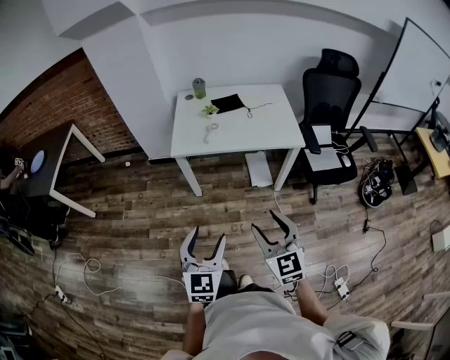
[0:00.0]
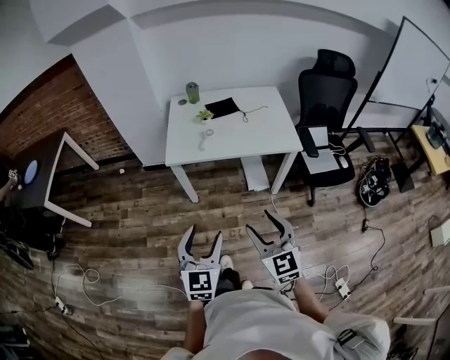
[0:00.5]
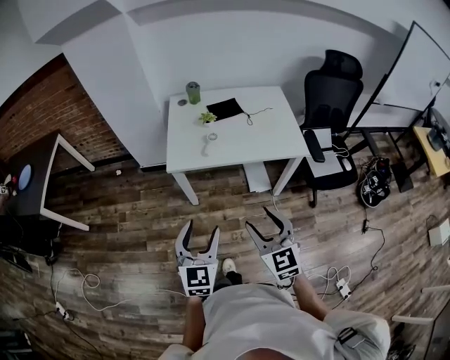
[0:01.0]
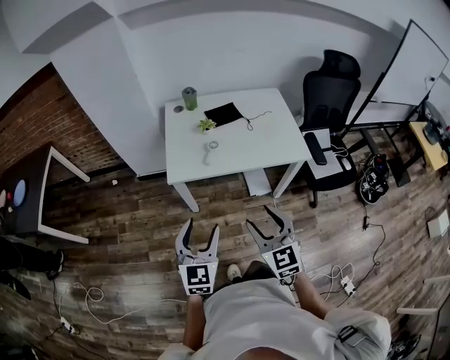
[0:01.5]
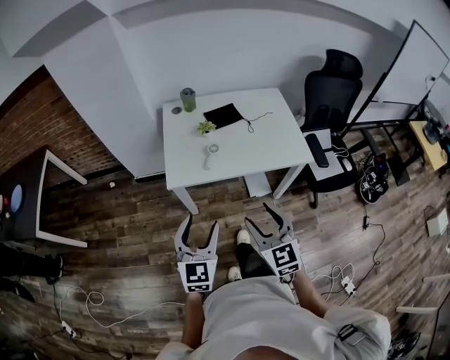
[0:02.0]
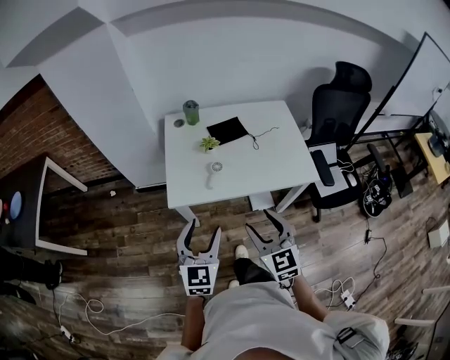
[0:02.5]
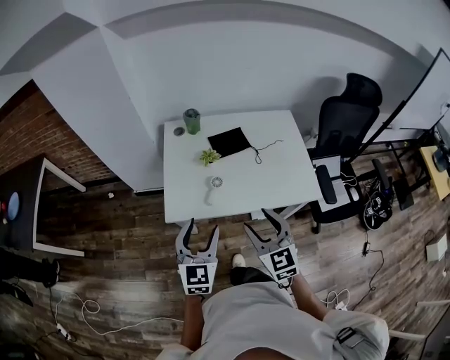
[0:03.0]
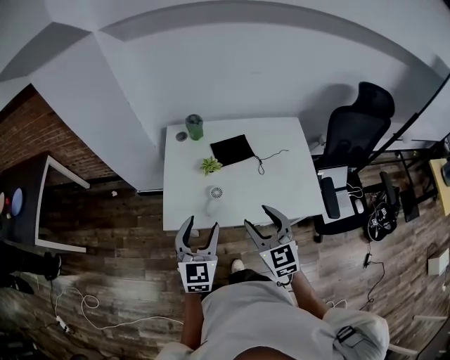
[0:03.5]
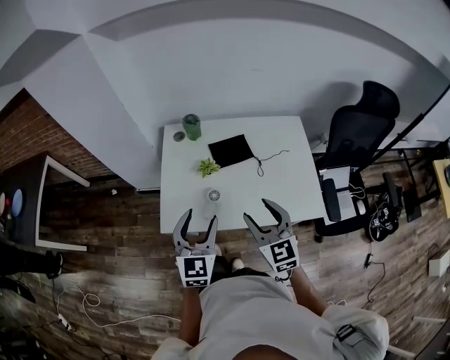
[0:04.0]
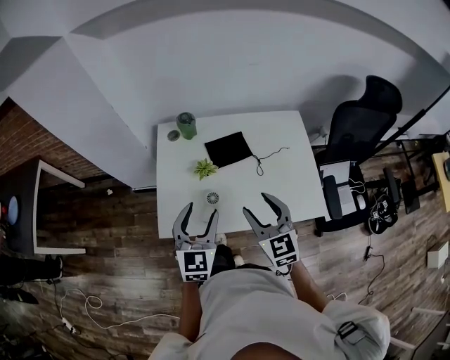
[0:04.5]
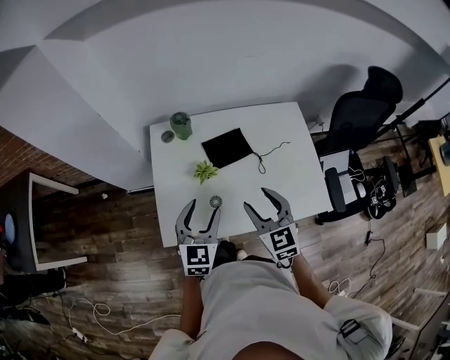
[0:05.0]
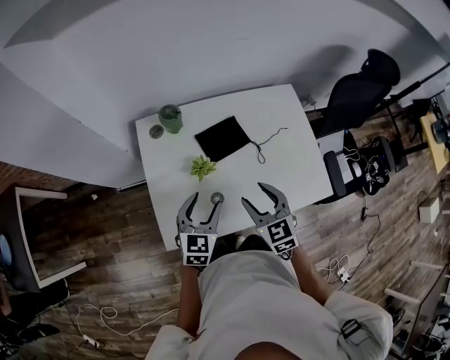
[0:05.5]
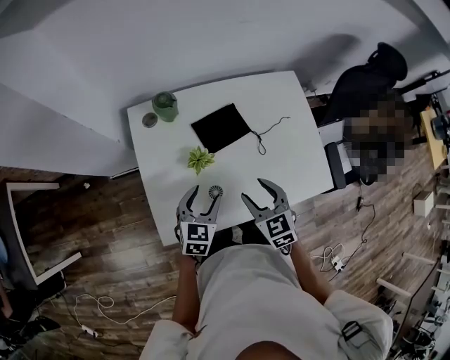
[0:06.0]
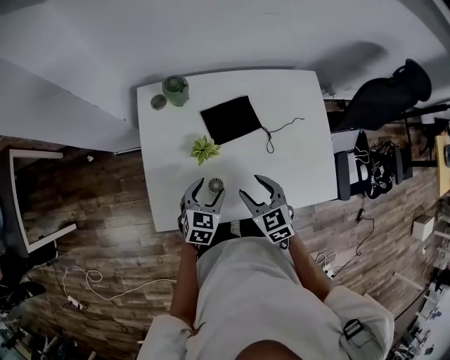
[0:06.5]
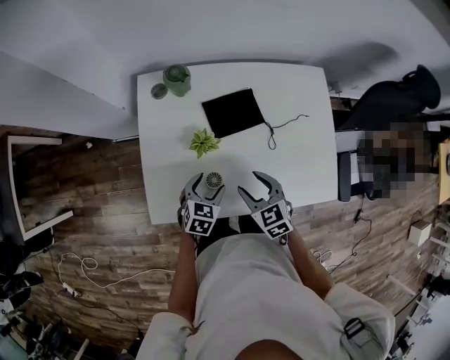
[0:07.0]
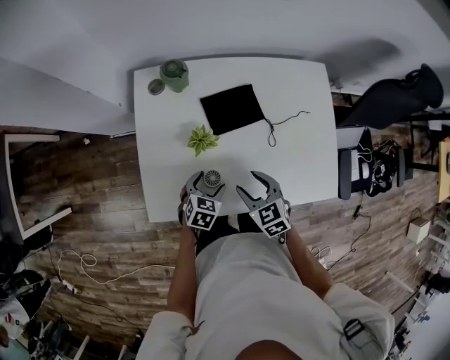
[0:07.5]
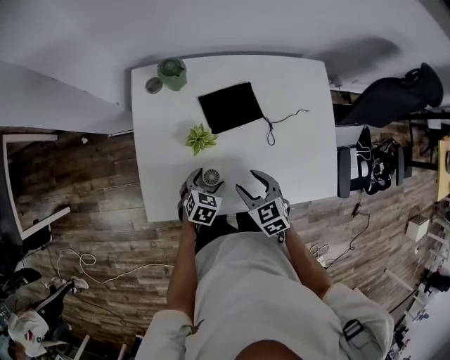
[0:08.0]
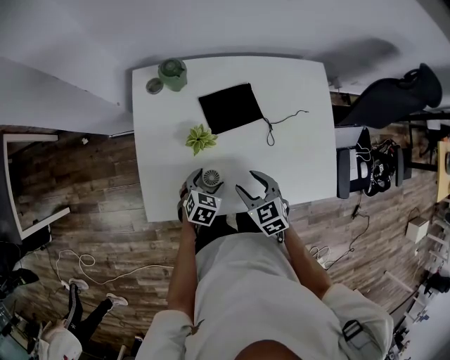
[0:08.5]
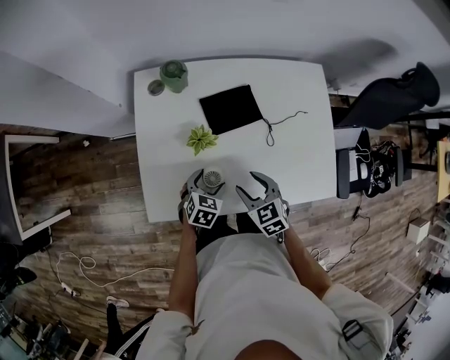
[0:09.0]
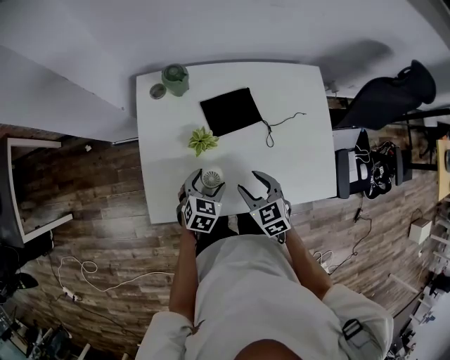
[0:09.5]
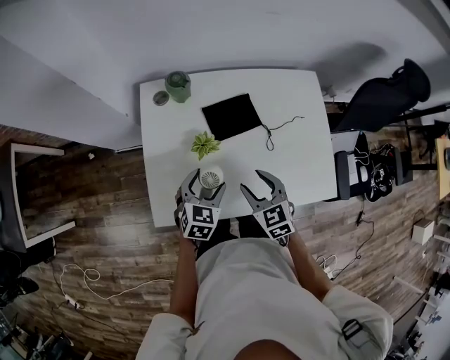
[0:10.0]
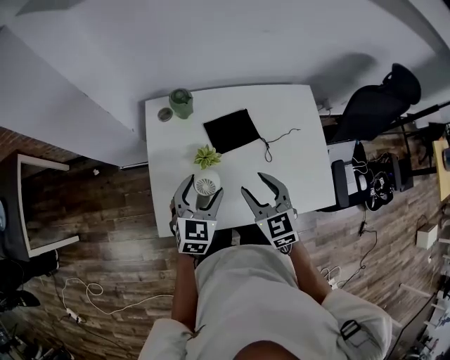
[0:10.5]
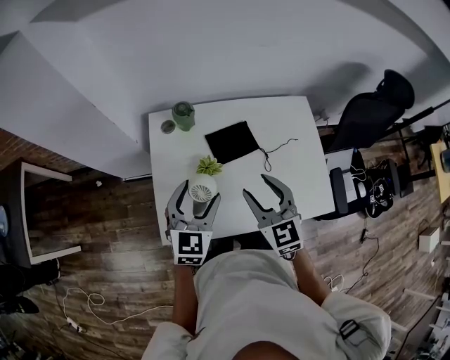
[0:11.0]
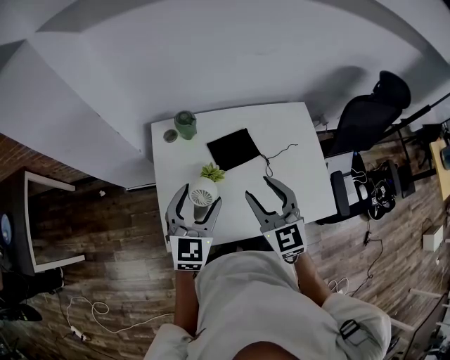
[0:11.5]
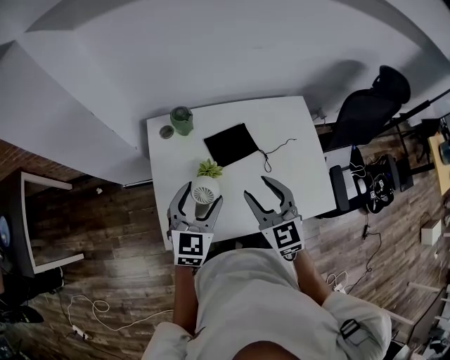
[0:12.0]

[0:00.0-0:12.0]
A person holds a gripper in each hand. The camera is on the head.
0:00.0 to 0:02.0: Both grippers move forward, roughly 25 cm.
0:02.0 to 0:04.0: The grippers both shift forward by some 30 cm.
0:04.0 to 0:06.0: The grippers both shift downward and forward by approximately 20 cm. The left gripper turns by some 30 degrees. Meanwhile the right gripper turns by about 20 degrees.
0:06.0 to 0:08.0: The left gripper goes about 15 cm downward, and swivels some 20 degrees. Meanwhile the right gripper moves downward, about 10 cm.
0:08.0 to 0:10.0: The left gripper heads upward, covering approximately 15 cm; the right gripper moves upward, some 5 cm.
0:10.0 to 0:12.0: The two grippers go approximately 15 cm upward. The left gripper swivels approximately 20 degrees.

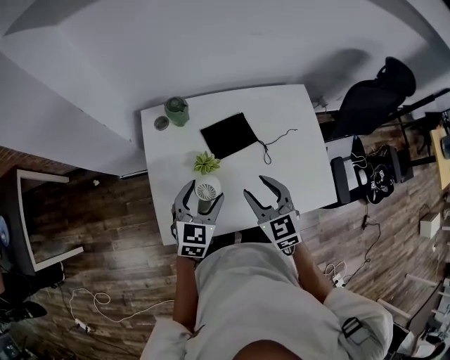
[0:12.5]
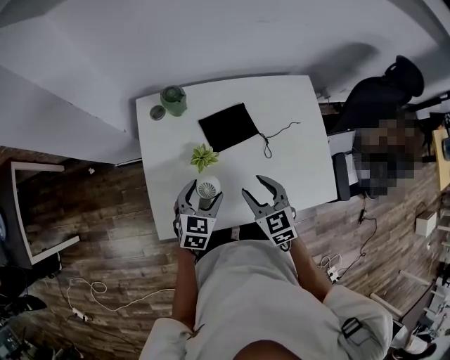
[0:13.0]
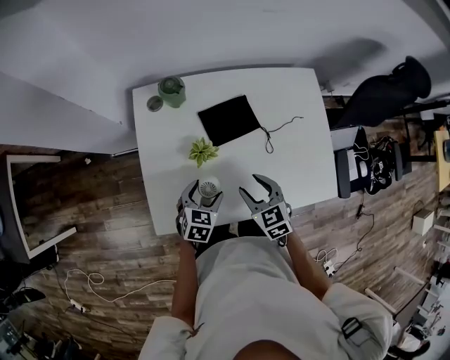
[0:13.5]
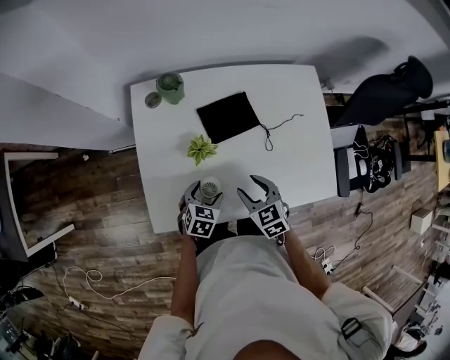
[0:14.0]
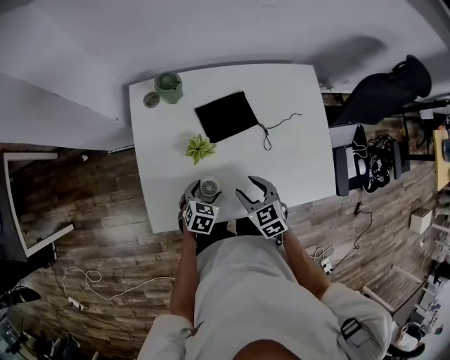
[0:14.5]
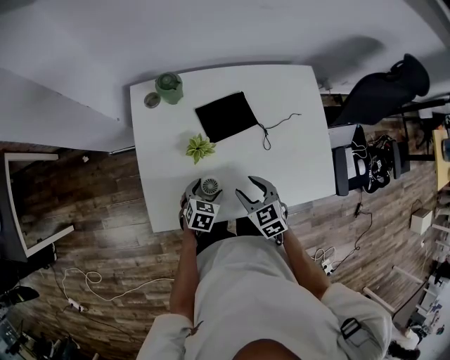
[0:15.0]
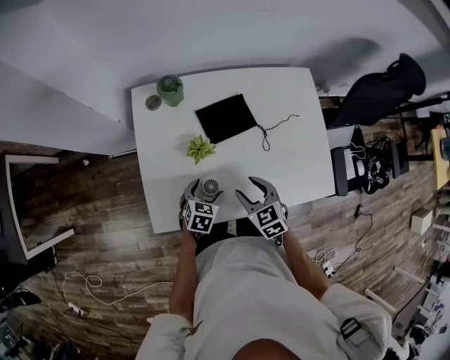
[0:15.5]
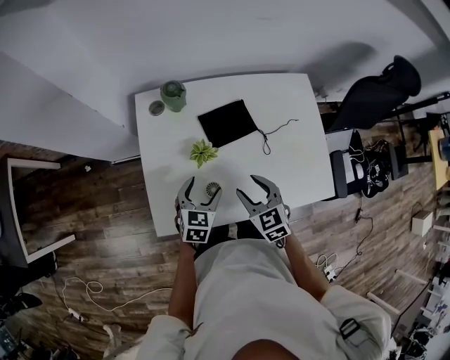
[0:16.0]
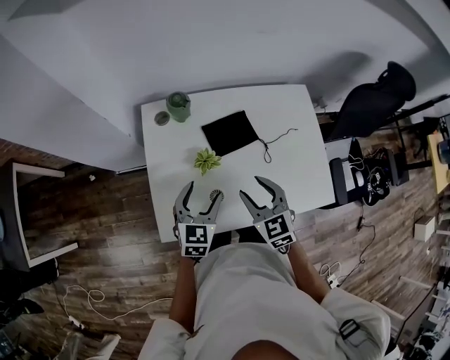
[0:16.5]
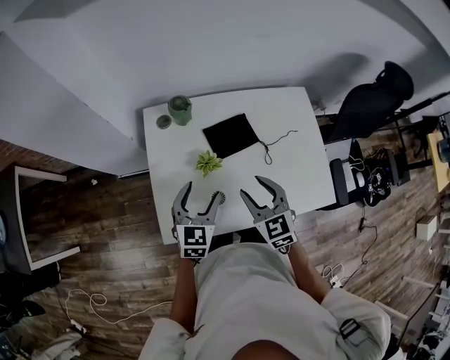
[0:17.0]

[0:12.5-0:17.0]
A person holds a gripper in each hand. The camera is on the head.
0:12.5 to 0:14.5: Both grippers travel together downward, approximately 20 cm. The left gripper turns by approximately 30 degrees. Meanwhile the right gripper turns by approximately 20 degrees.
0:14.5 to 0:17.0: The grippers both shift upward by roughly 15 cm. The right gripper changes its angle by roughly 20 degrees. Meanwhile the left gripper tips its fingers upward by about 30 degrees.

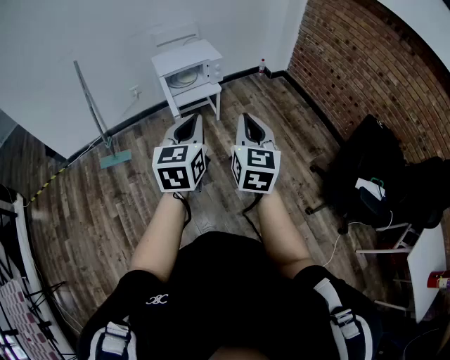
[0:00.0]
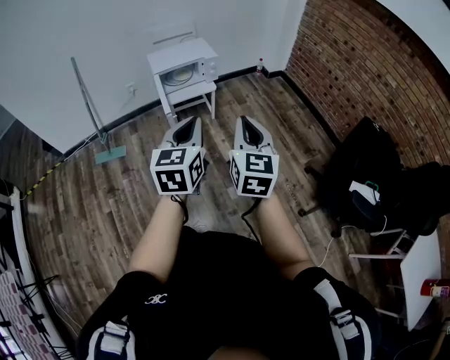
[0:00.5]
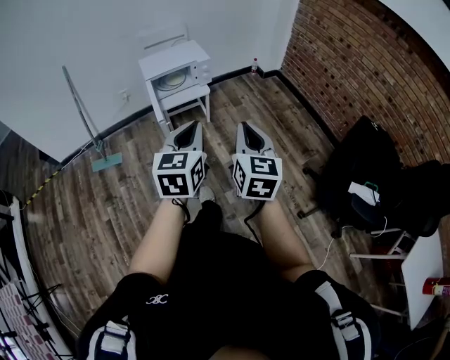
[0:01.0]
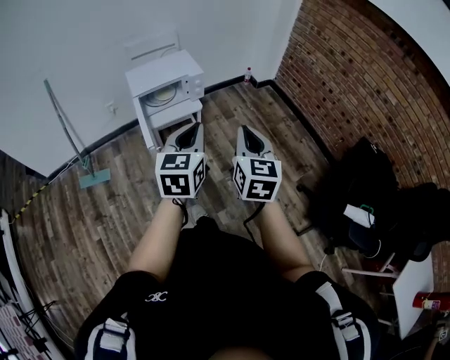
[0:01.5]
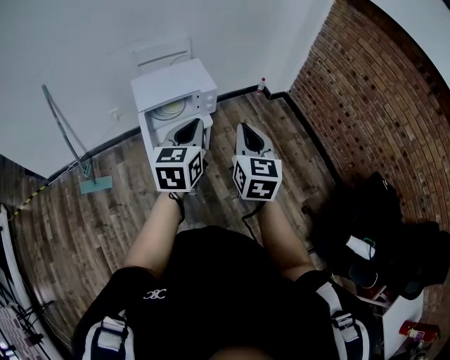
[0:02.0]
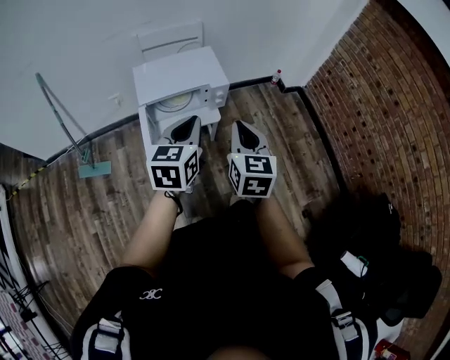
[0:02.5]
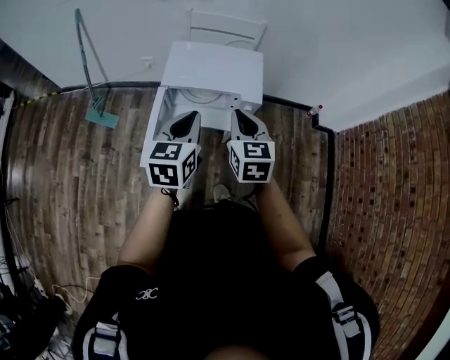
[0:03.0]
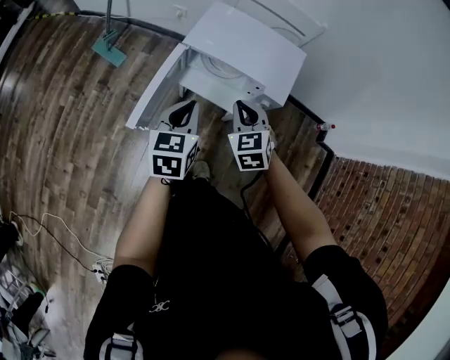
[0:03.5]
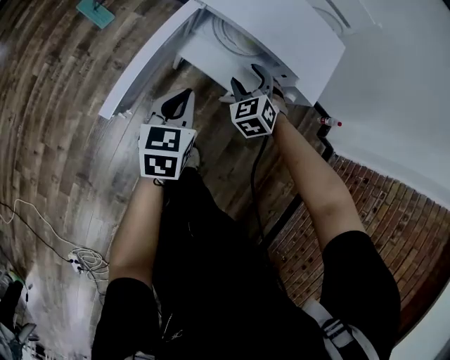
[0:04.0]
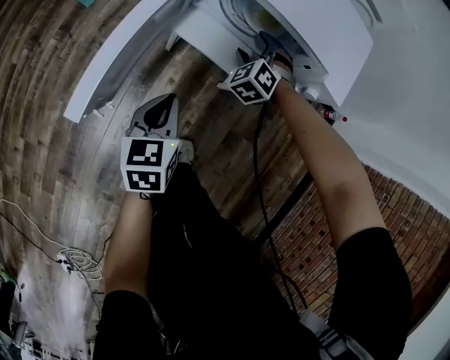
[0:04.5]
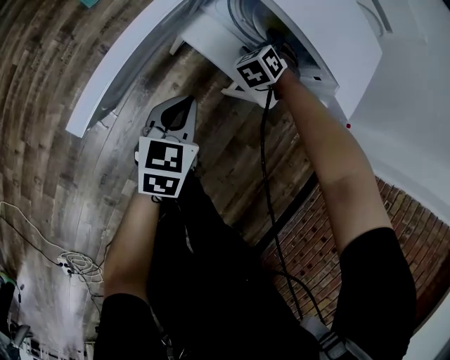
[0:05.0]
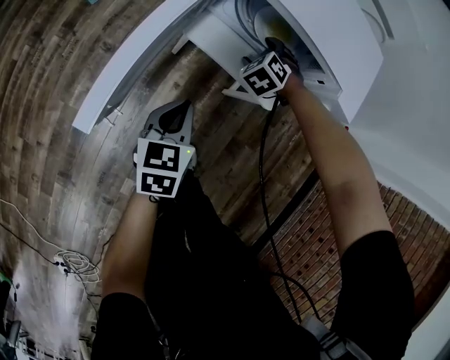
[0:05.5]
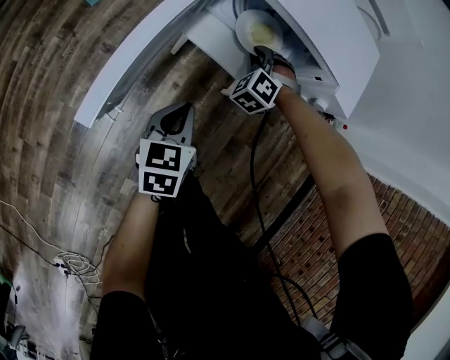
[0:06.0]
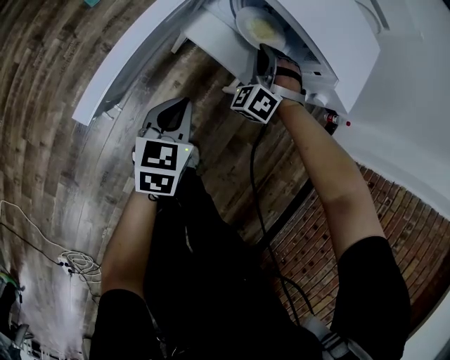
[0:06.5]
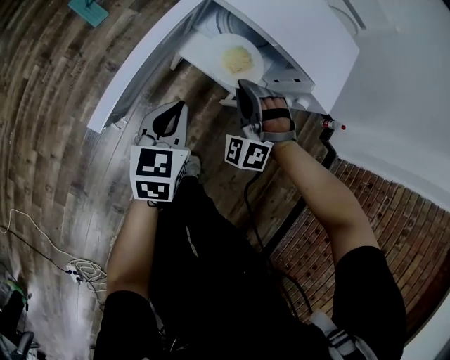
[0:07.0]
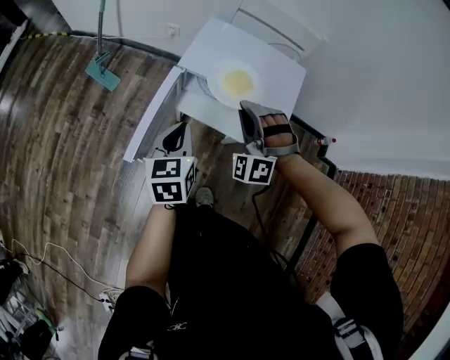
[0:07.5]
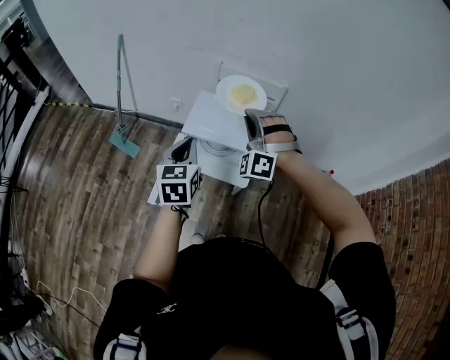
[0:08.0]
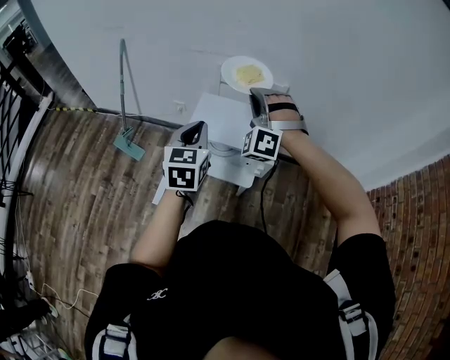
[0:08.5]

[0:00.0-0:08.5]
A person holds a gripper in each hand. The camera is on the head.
0:00.0 to 0:02.0: The grippers both shift forward by roughly 35 cm.
0:02.0 to 0:04.0: Both grippers move downward, some 40 cm. The left gripper turns by roughly 50 degrees. Meanwhile the right gripper points its fingers about 40 degrees further downward, and opens.
0:04.0 to 0:06.5: The left gripper shifts about 15 cm downward; the right gripper goes roughly 10 cm downward and forward, swivels about 40 degrees, and closes its fingers.
0:06.5 to 0:08.5: The two grippers go approximately 50 cm upward. The right gripper turns by approximately 20 degrees; the left gripper rotates approximately 30 degrees.

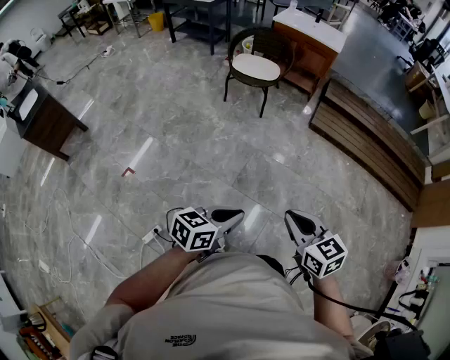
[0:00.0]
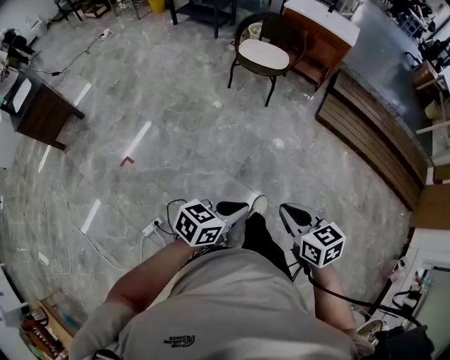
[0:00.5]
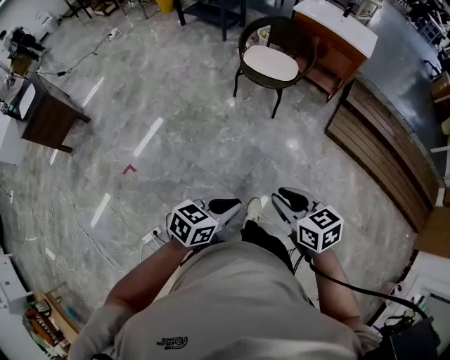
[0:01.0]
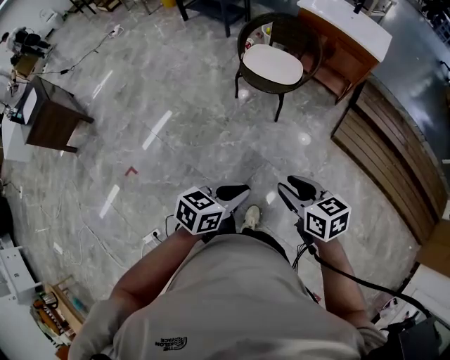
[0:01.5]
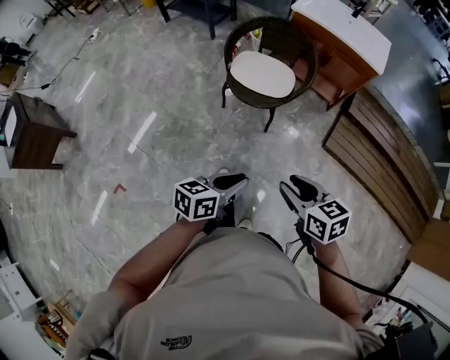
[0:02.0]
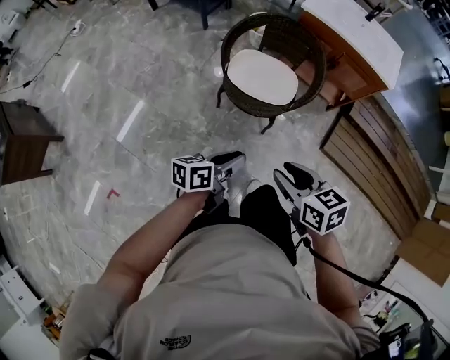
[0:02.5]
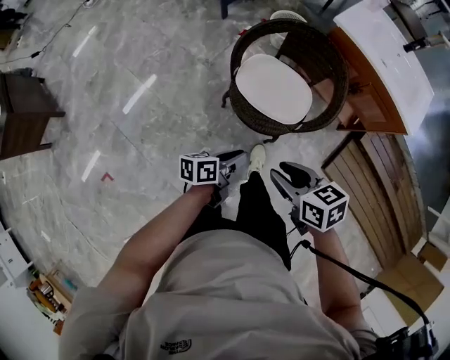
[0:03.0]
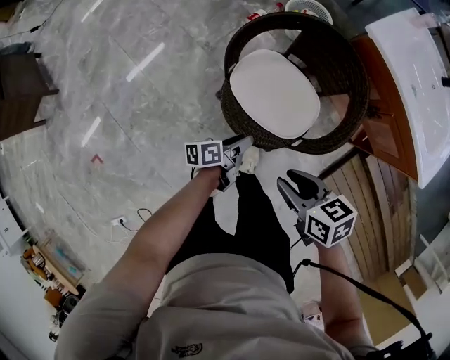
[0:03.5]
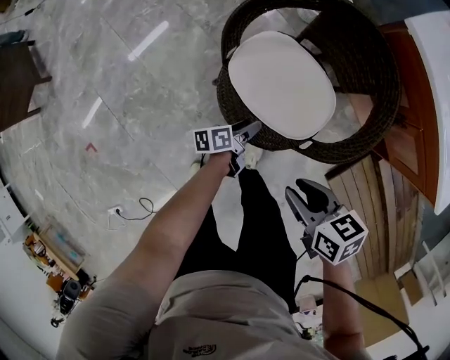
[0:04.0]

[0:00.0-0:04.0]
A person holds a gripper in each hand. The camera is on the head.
0:00.0 to 0:02.0: The right gripper shifts by roughly 60 cm, and opens its fingers.
0:02.0 to 0:04.0: The right gripper shifts by approximately 50 cm, and rotates some 30 degrees.
